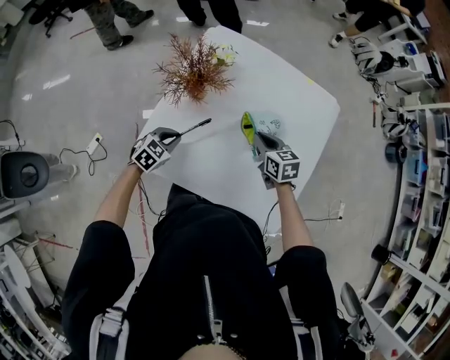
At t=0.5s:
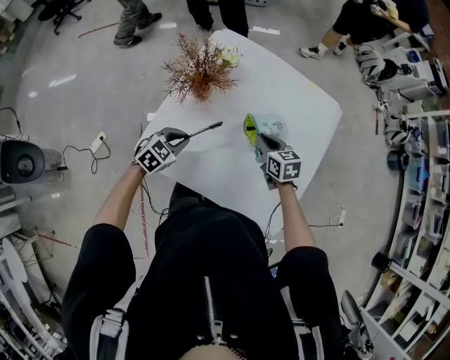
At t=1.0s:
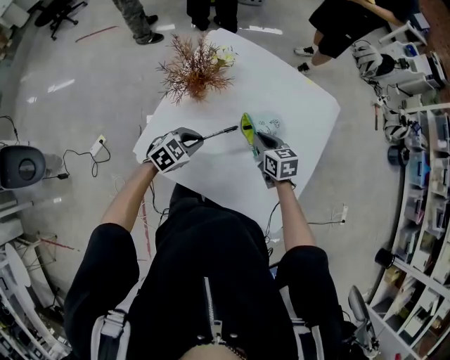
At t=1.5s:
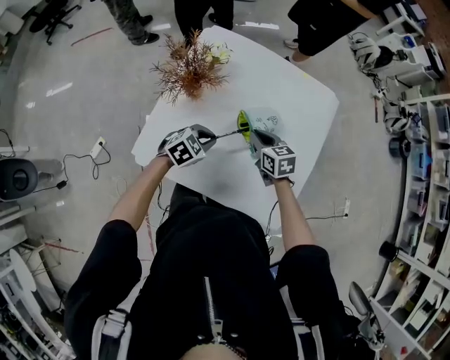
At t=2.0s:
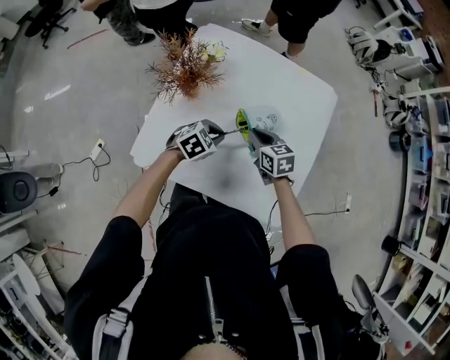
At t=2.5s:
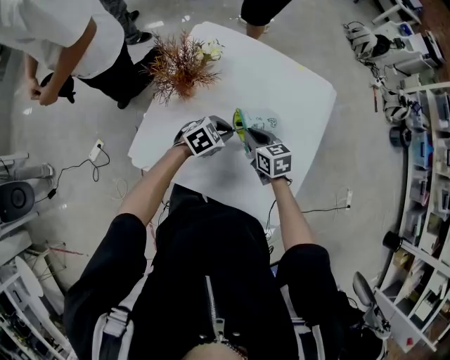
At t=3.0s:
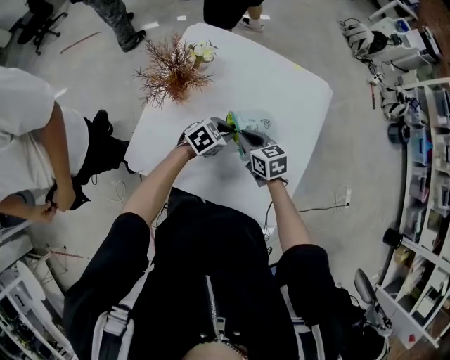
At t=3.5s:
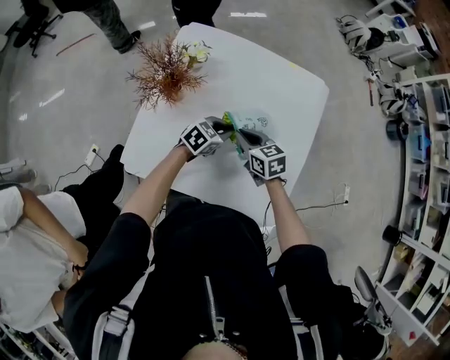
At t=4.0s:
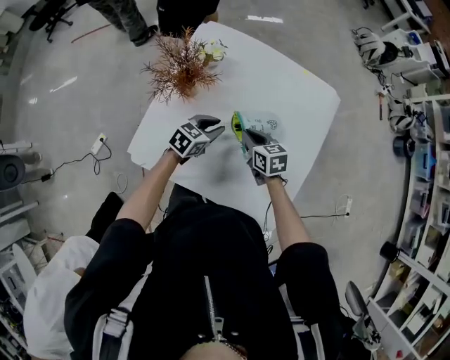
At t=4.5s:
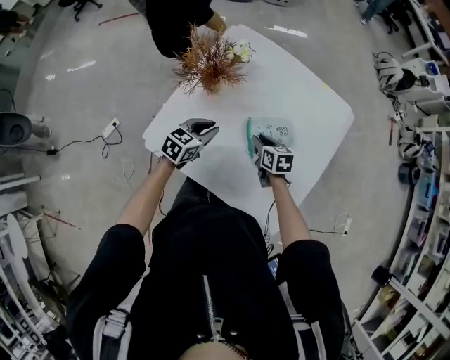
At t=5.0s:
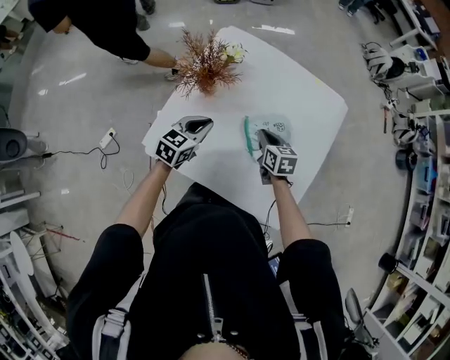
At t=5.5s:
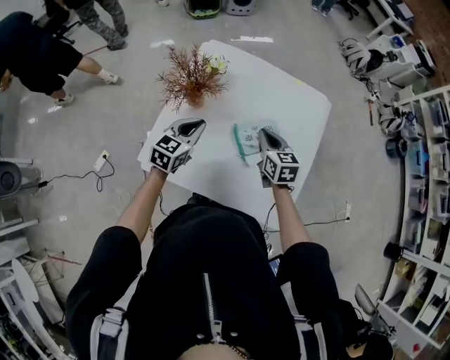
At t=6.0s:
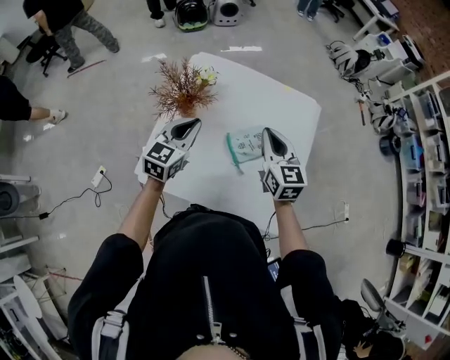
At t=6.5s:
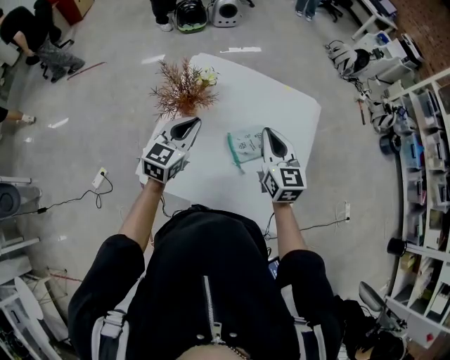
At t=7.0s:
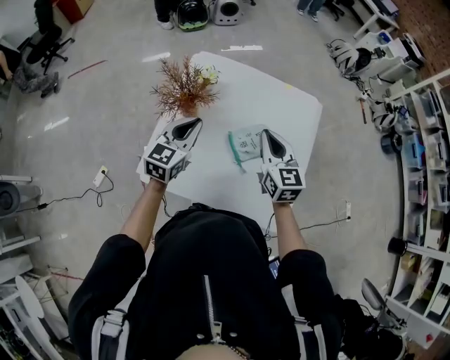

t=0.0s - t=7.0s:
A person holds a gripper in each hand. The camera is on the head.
t=0.0s - t=2.0s: The left gripper shifts about 15 cm to the right.
t=2.0s - t=3.5s: The left gripper heads to the right and forward, covering about 10 cm.
t=3.5s - t=5.0s: The left gripper shifts approximately 20 cm to the left and upward, and swivels roughly 30 degrees.
t=5.0s - t=7.0s: The right gripper goes approximately 20 cm upward, and changes its angle by roughly 30 degrees. Meanwhile the left gripper is displaced upward by about 10 cm.

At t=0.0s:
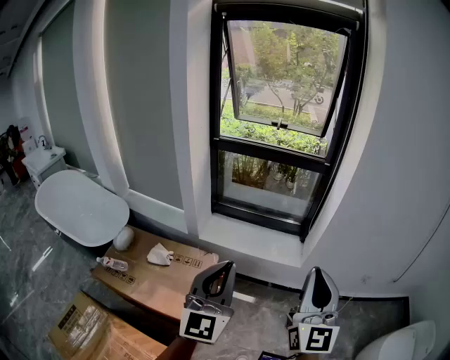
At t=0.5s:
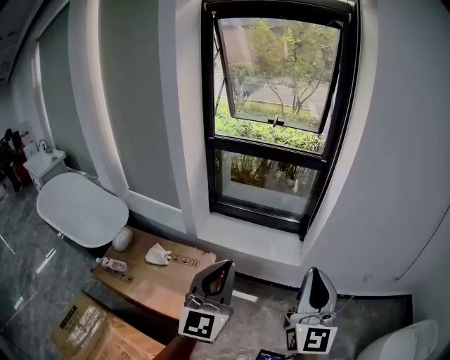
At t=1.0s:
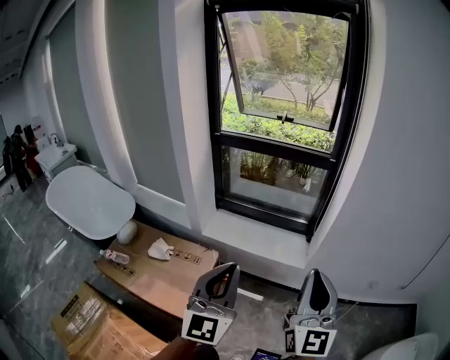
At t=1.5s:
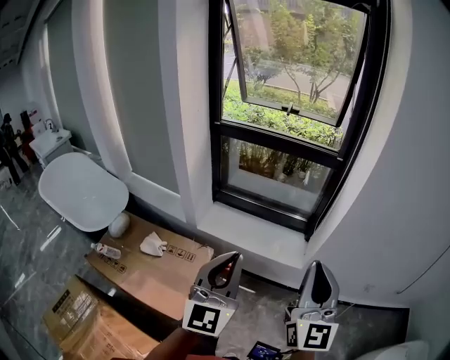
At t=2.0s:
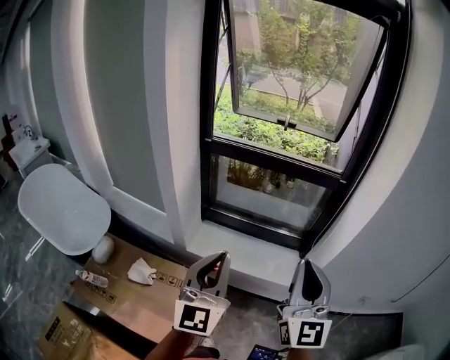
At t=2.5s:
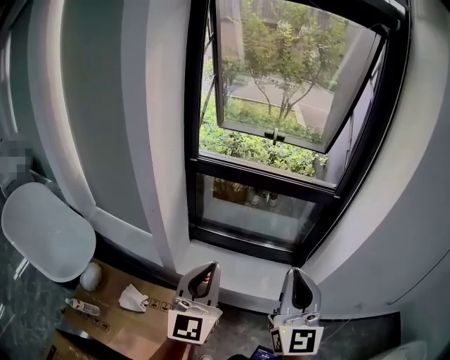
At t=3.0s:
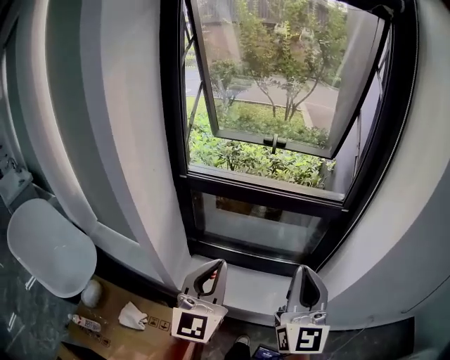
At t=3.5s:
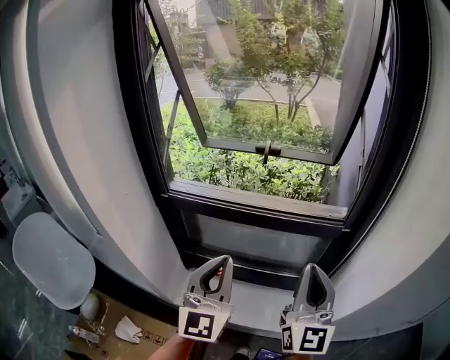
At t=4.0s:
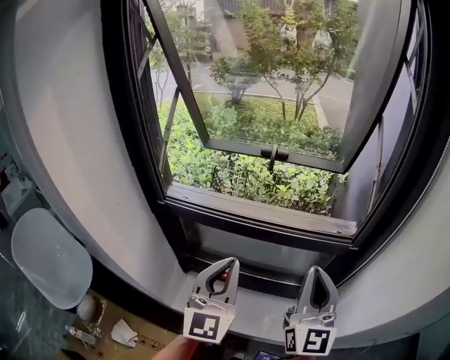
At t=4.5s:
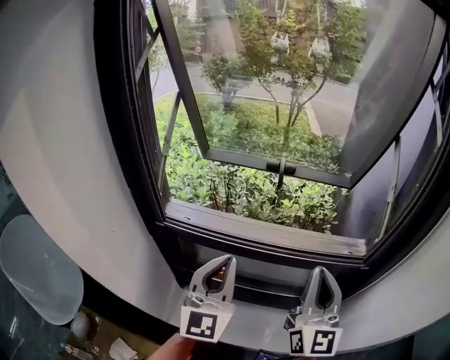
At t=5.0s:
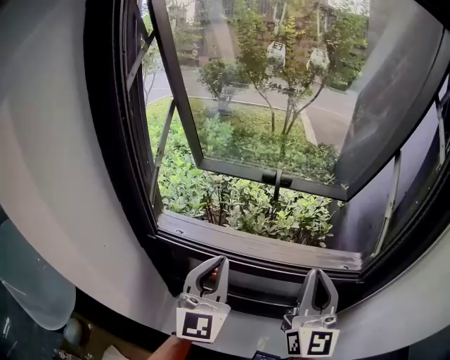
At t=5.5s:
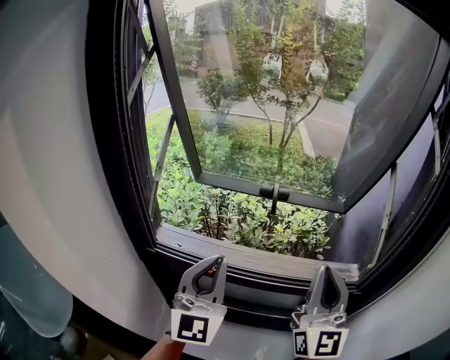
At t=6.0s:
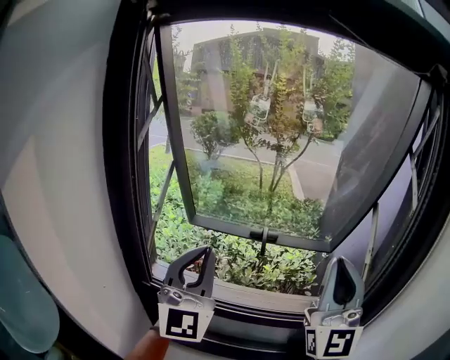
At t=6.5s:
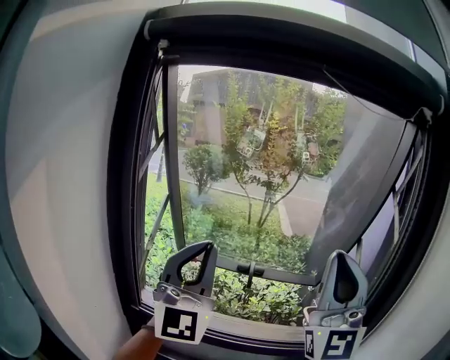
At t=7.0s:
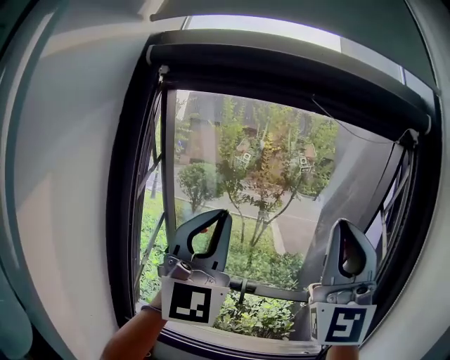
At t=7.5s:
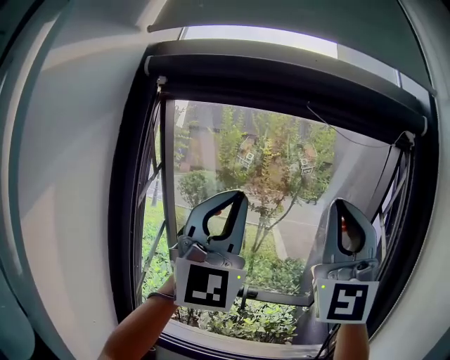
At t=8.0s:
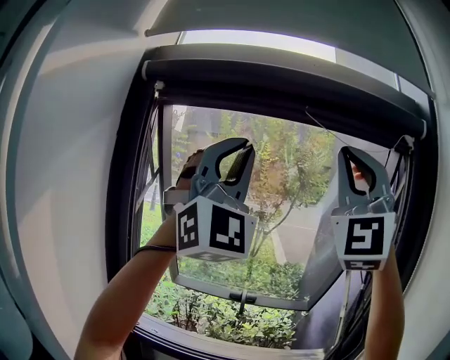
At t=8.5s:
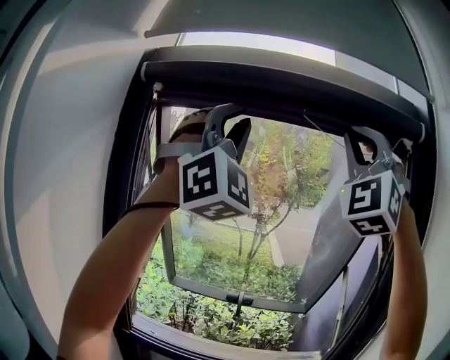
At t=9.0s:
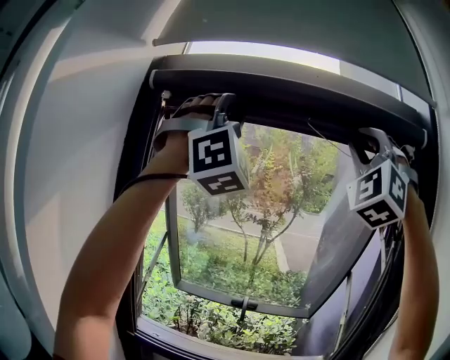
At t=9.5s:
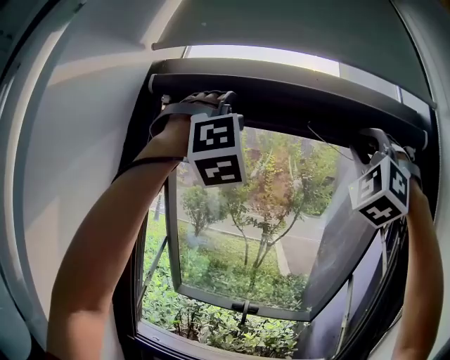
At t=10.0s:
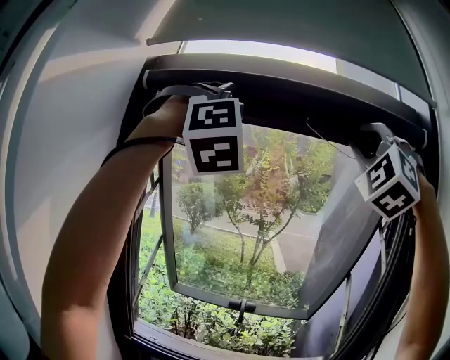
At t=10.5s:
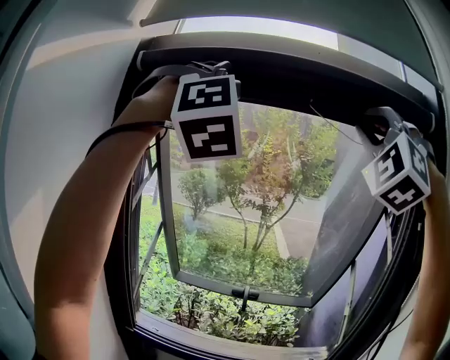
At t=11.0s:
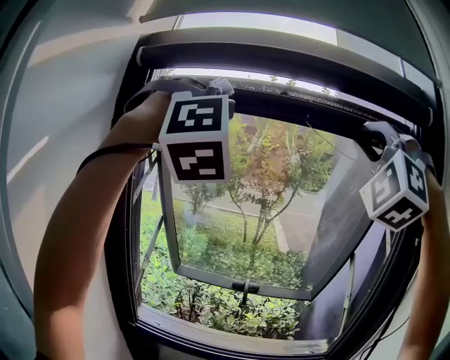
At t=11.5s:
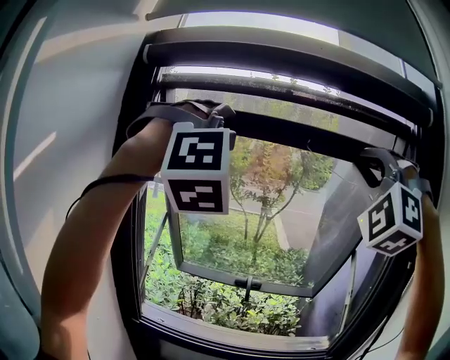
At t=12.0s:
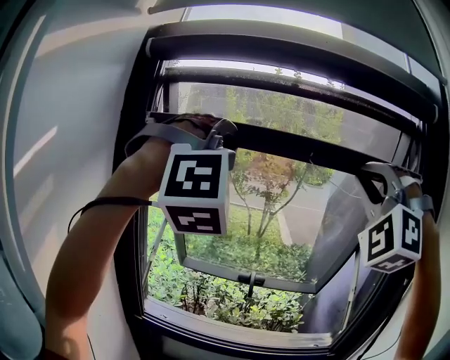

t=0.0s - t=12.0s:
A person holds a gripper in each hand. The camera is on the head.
t=0.0s - t=2.0s: Both grippers move forward, approximately 25 cm.
t=2.0s - t=4.0s: Both grippers move forward, some 35 cm.
t=4.0s - t=6.0s: The right gripper travels upward and forward by approximately 25 cm, and rotates approximately 30 degrees. Meanwhile the left gripper goes roughly 25 cm upward, forward and to the left, and turns by some 20 degrees.
t=6.0s - t=8.0s: The grippers both shift upward by approximately 35 cm. The right gripper swivels approximately 40 degrees. The left gripper turns by about 40 degrees.
t=8.0s - t=10.0s: The grippers both shift upward and forward by some 10 cm. The right gripper changes its angle by about 40 degrees. Meanwhile the left gripper rotates about 50 degrees.
t=10.0s - t=12.0s: The two grippers go some 15 cm downward.

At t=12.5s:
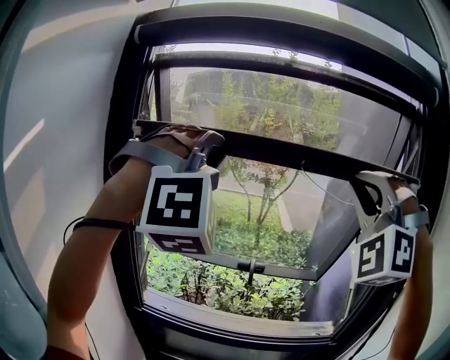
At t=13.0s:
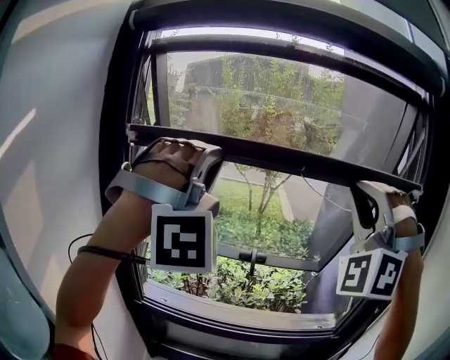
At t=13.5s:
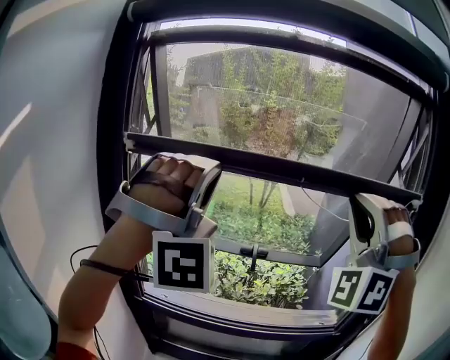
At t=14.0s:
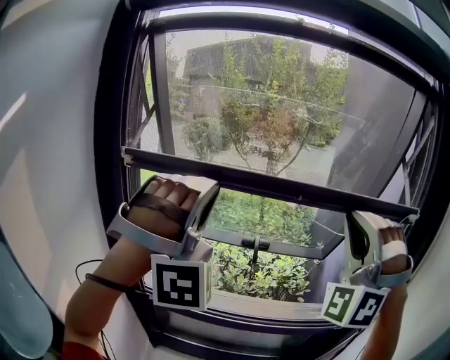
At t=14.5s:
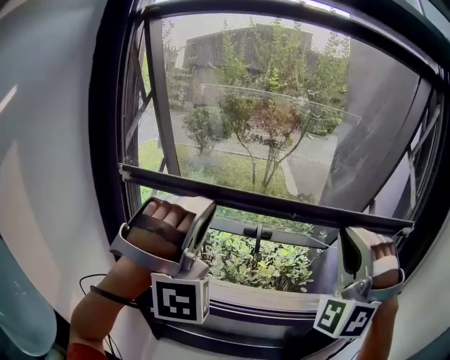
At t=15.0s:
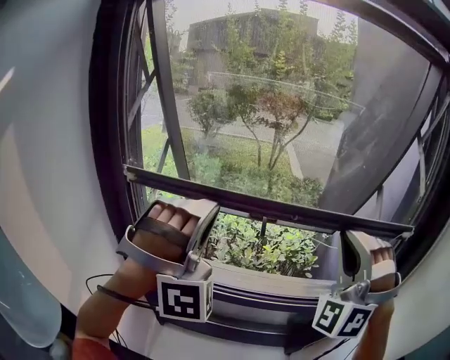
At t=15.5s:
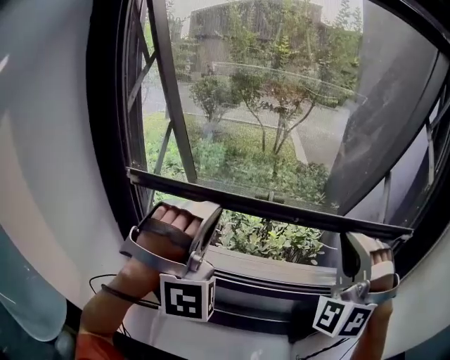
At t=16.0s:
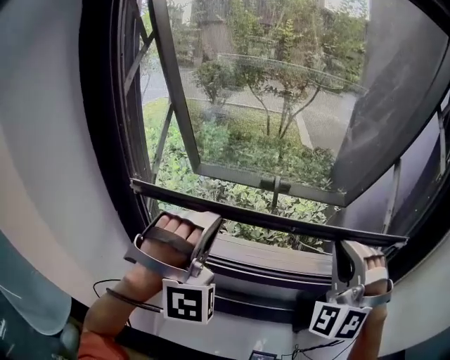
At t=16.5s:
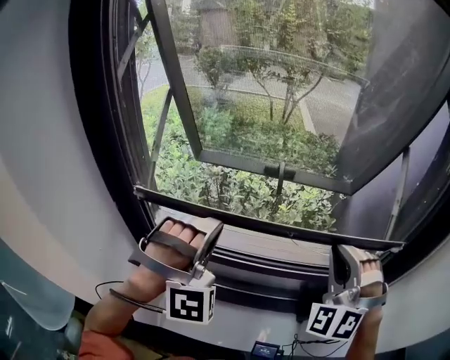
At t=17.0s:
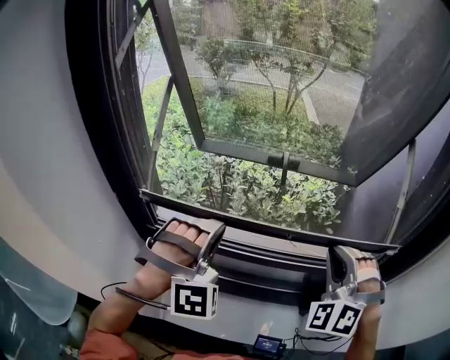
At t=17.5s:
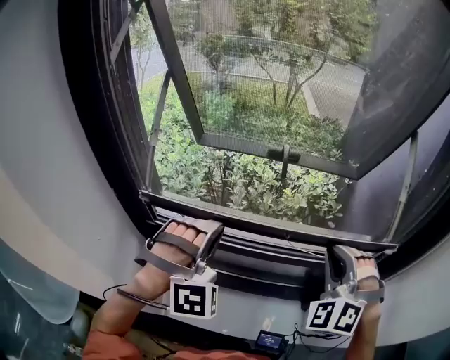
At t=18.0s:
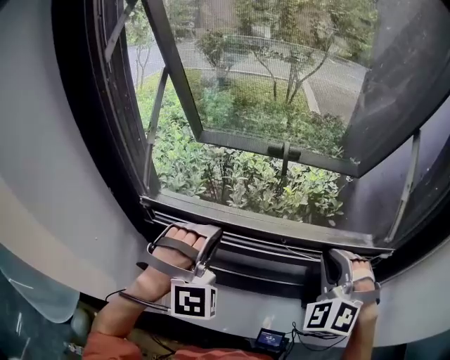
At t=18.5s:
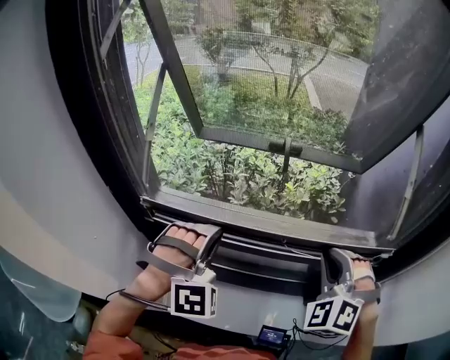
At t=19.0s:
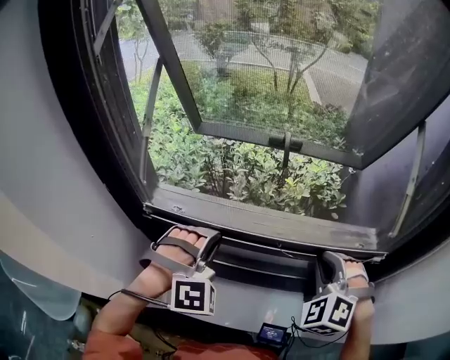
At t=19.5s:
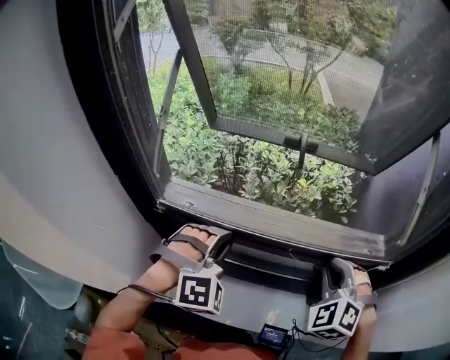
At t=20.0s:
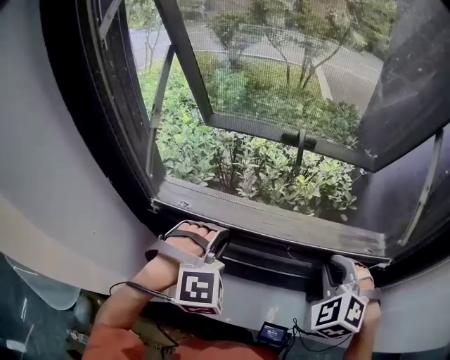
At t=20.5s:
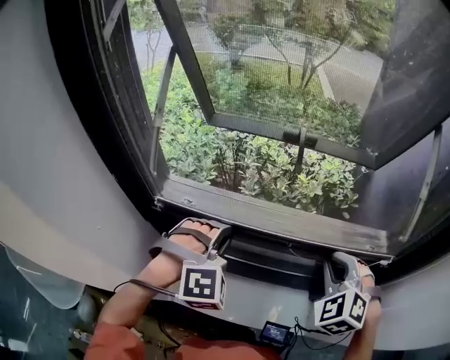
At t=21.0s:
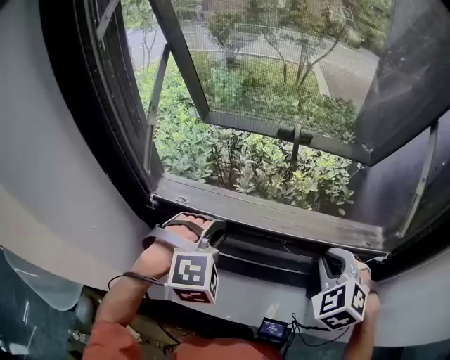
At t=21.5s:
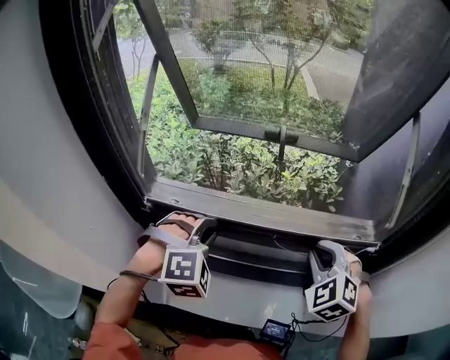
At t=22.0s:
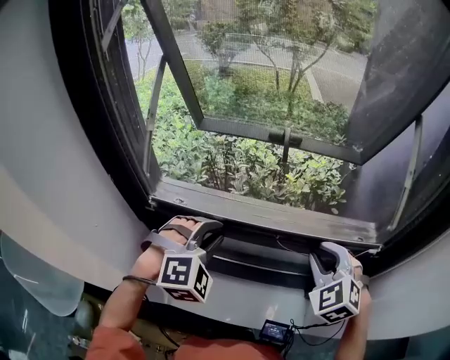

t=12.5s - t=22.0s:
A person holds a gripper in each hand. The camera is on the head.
t=12.5s - t=14.5s: Both grippers travel together downward, roughly 15 cm.
t=14.5s - t=16.5s: Both grippers travel together downward, roughly 20 cm. The left gripper swivels some 20 degrees; the right gripper swivels roughly 20 degrees.
t=16.5s - t=18.0s: The two grippers go some 10 cm downward.
t=18.0s - t=20.0s: The grippers both shift downward by about 5 cm. The left gripper rotates roughly 20 degrees.
t=20.0s - t=22.0s: There are only small adjustments of the grippers.
